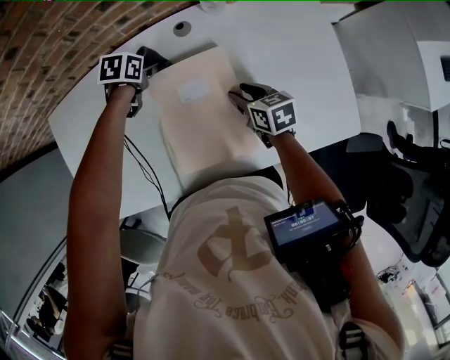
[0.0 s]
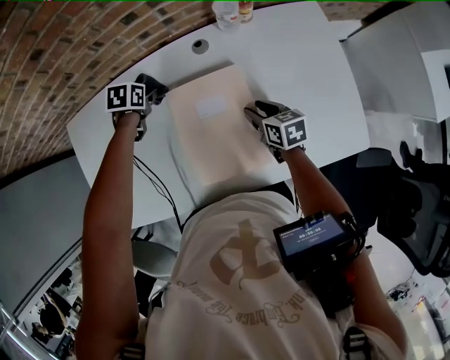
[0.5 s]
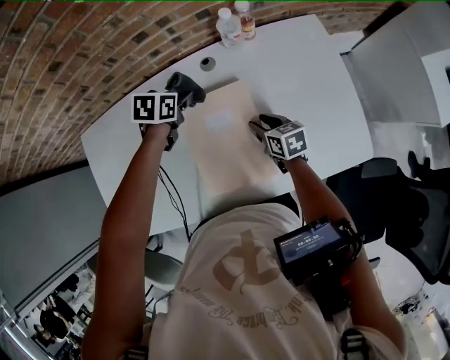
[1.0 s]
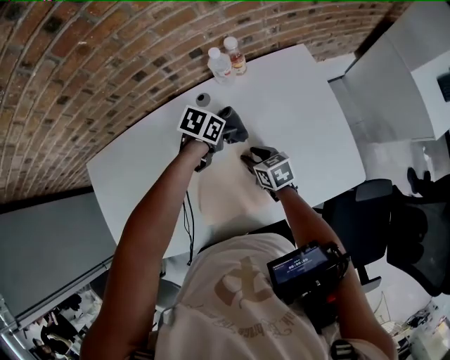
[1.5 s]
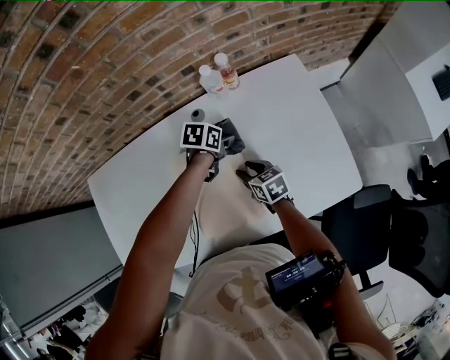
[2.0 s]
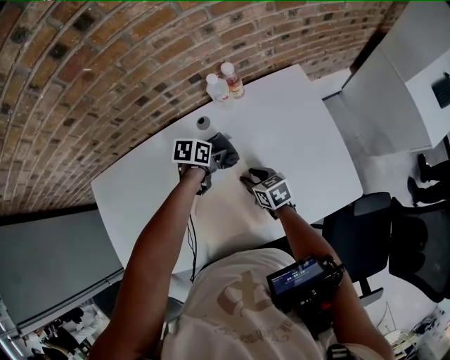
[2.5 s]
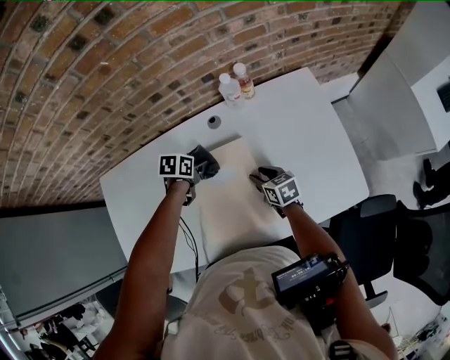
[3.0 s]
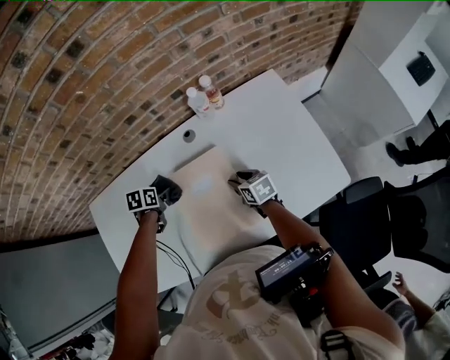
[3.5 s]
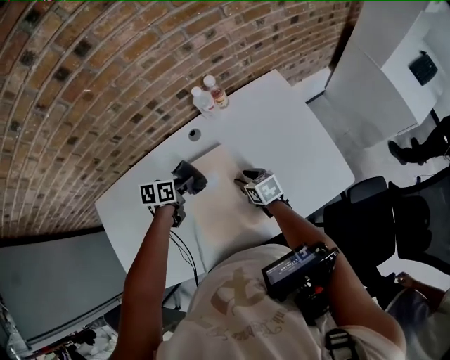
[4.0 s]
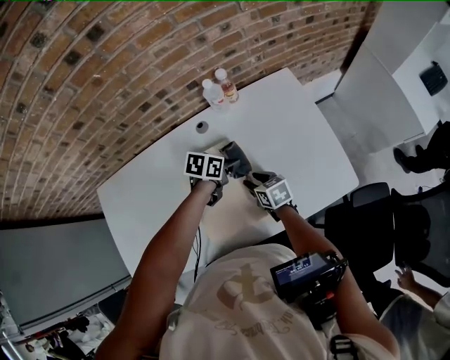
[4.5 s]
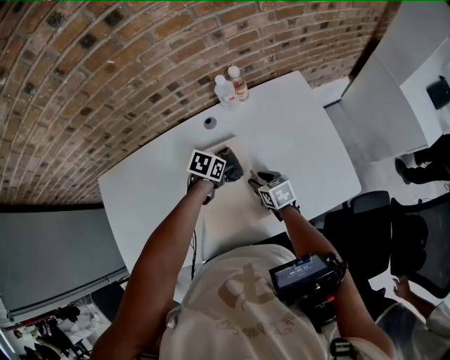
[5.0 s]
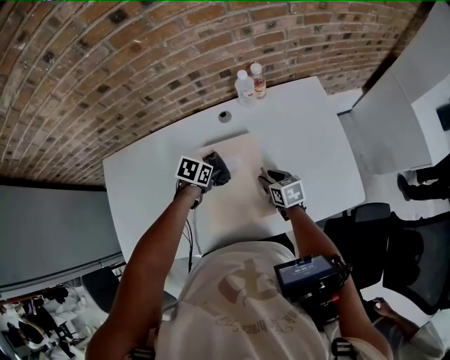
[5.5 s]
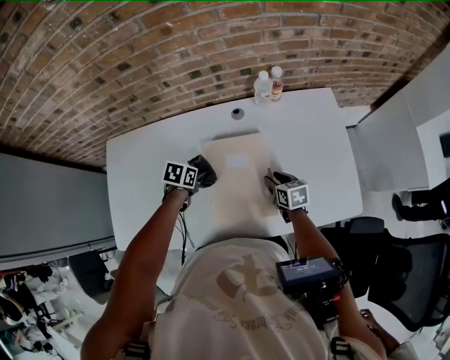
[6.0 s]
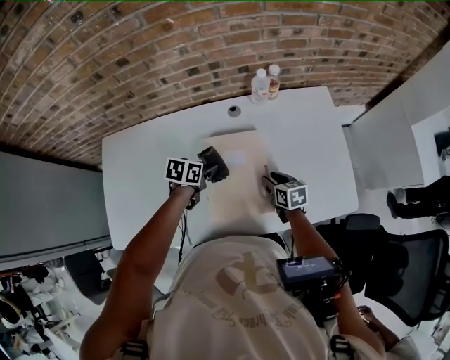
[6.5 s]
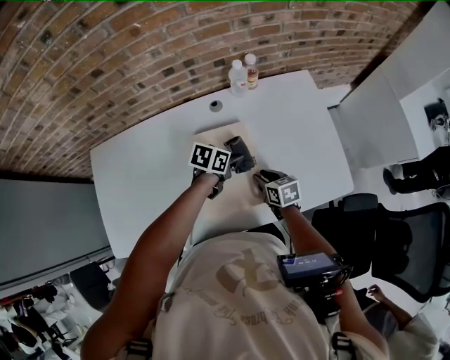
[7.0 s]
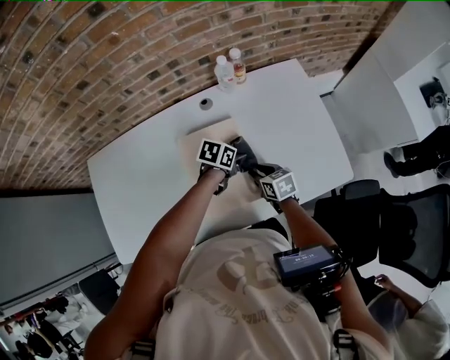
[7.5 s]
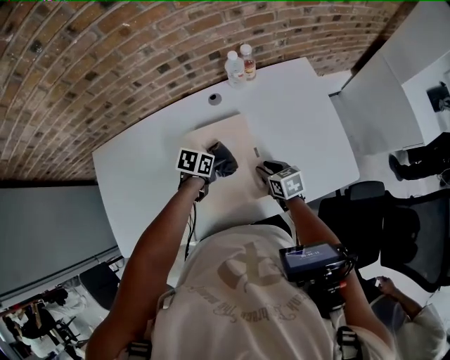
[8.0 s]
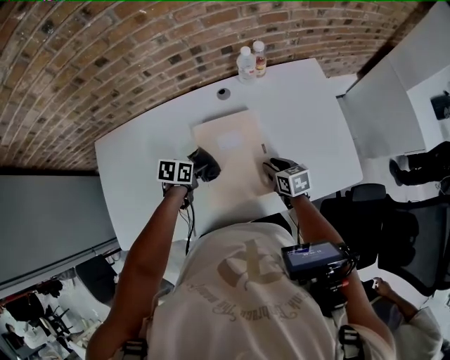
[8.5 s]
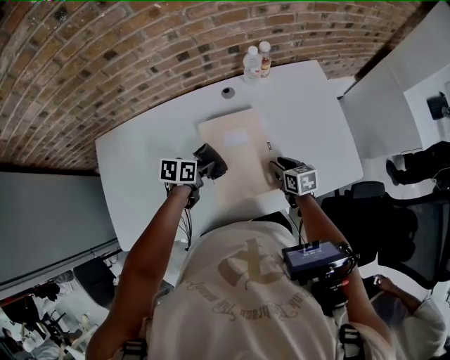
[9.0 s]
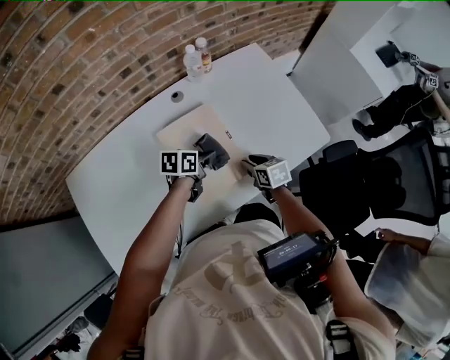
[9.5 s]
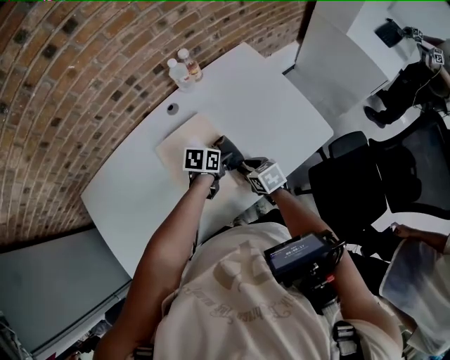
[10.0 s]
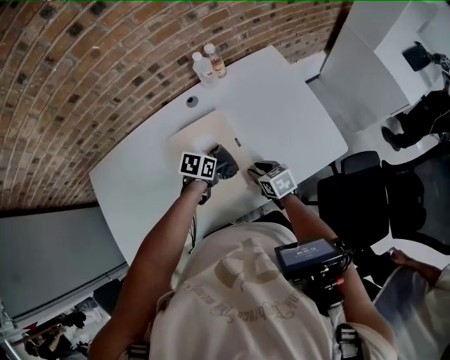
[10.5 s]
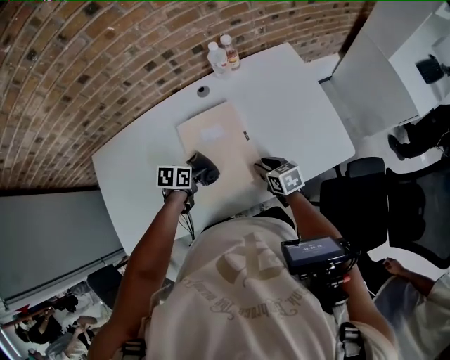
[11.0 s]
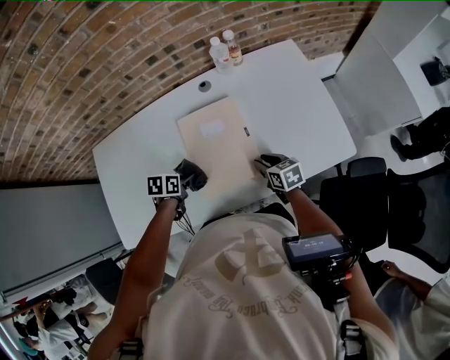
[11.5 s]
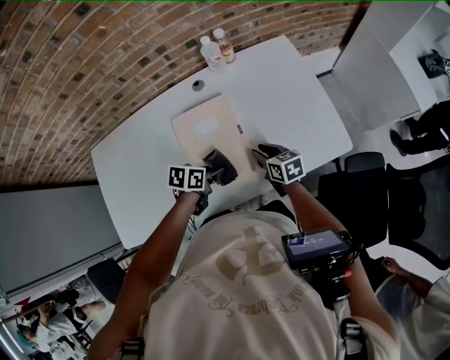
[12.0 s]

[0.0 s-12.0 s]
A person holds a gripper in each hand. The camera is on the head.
0.0 to 2.0 s: The left gripper travels upward and back again, approximately 10 cm each way.
2.0 to 4.0 s: The left gripper goes roughly 15 cm to the left, backward and upward.
4.0 to 6.0 s: The left gripper heads backward and to the left, covering some 10 cm.
6.0 to 8.0 s: The left gripper heads to the right, covering about 10 cm.
8.0 to 10.0 s: The right gripper is displaced backward by approximately 5 cm, while the left gripper heads to the right, covering approximately 15 cm.
10.0 to 12.0 s: The left gripper shifts approximately 10 cm backward, and goes to the left and returns, some 20 cm each way.

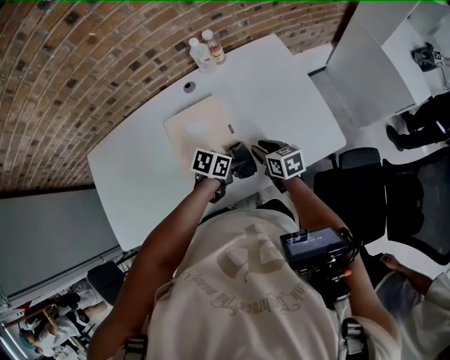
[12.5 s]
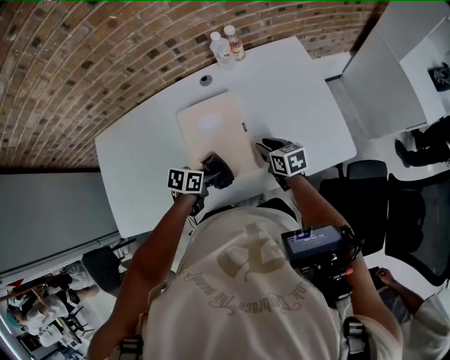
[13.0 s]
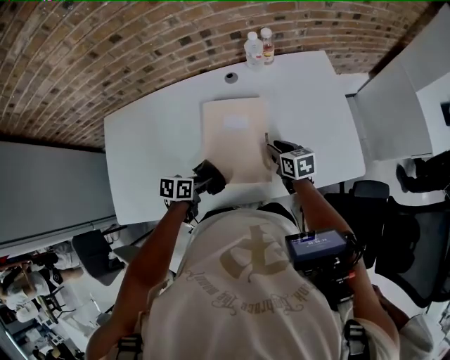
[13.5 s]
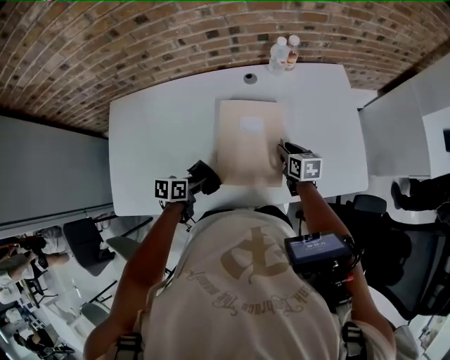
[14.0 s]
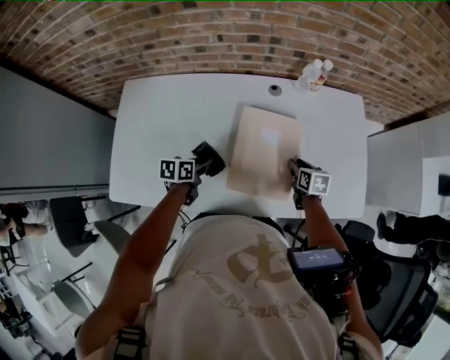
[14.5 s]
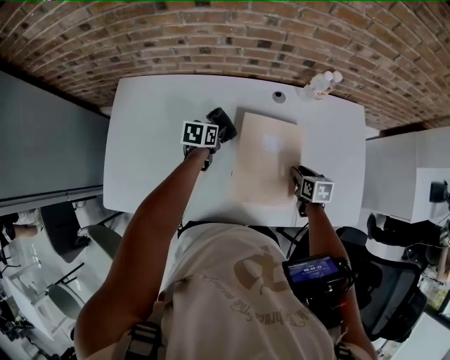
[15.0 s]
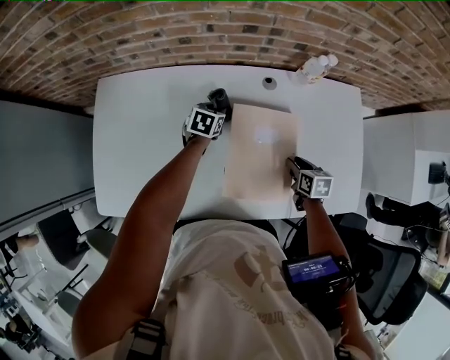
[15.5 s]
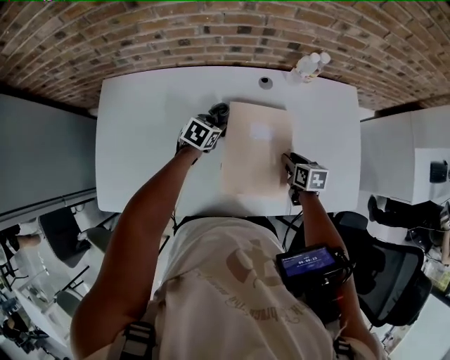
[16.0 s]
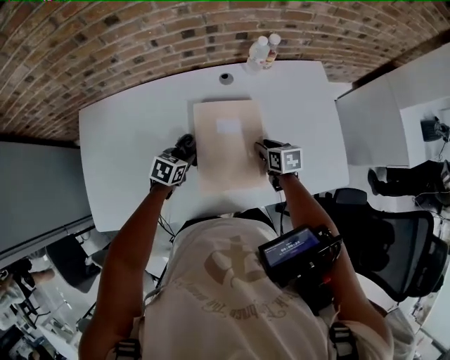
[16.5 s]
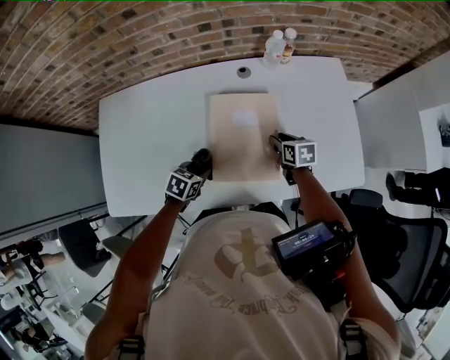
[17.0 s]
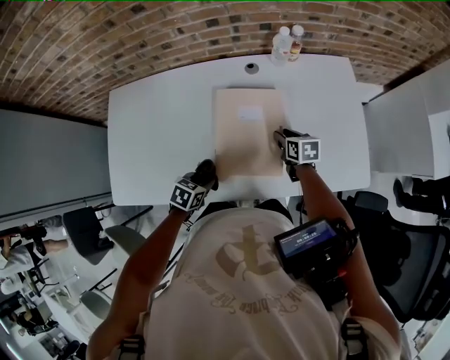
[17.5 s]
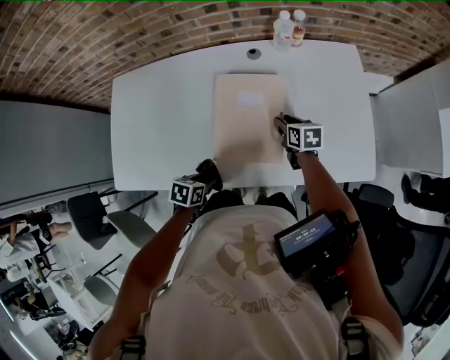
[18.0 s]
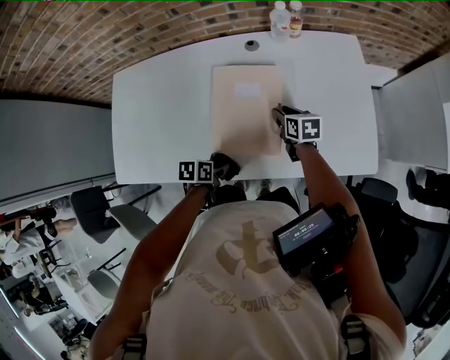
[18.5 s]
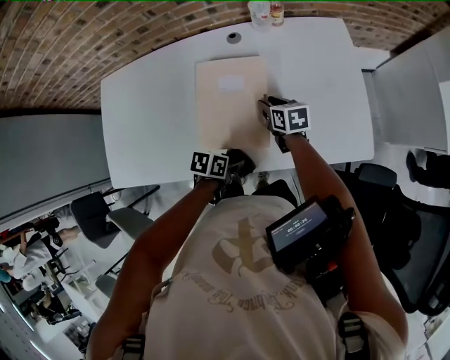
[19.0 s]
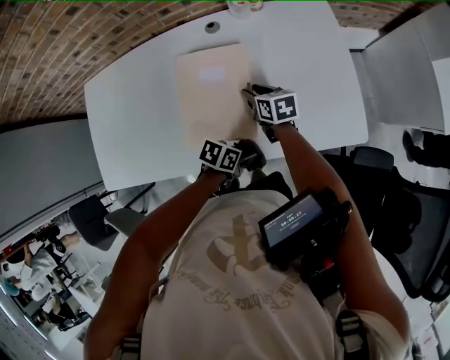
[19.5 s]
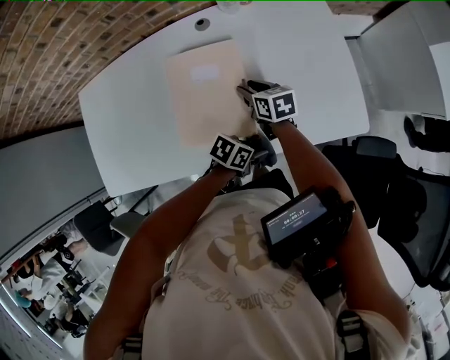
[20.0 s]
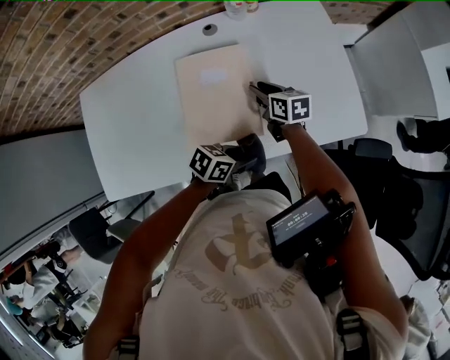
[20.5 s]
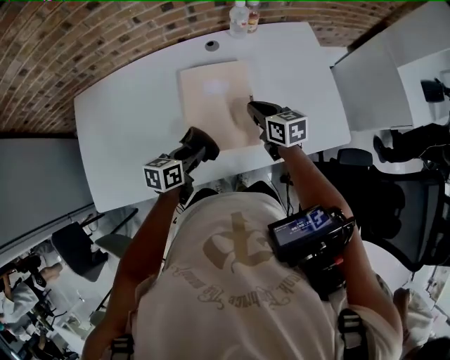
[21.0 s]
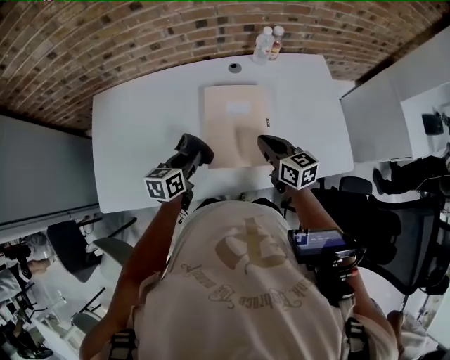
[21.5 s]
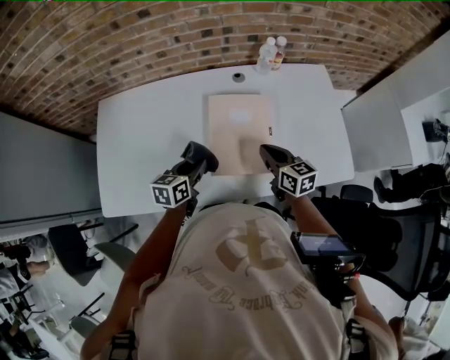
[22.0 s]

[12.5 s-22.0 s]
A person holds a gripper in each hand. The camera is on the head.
12.5 to 14.5 s: The right gripper is displaced to the left and forward by some 10 cm, while the left gripper heads to the left, covering approximately 30 cm, and changes its angle by roughly 40 degrees.
14.5 to 16.5 s: The left gripper heads to the right, covering approximately 5 cm, reaches roughly 20 cm forward, then returns, and changes its angle by some 40 degrees.
16.5 to 18.0 s: The left gripper heads backward, covering approximately 20 cm, and swivels approximately 20 degrees.
18.0 to 20.0 s: The left gripper moves some 25 cm, and changes its angle by some 30 degrees.
20.0 to 22.0 s: The left gripper ends up approximately 35 cm from where it was, and rotates roughly 50 degrees. Meanwhile the right gripper travels upward by some 15 cm, and closes its fingers.

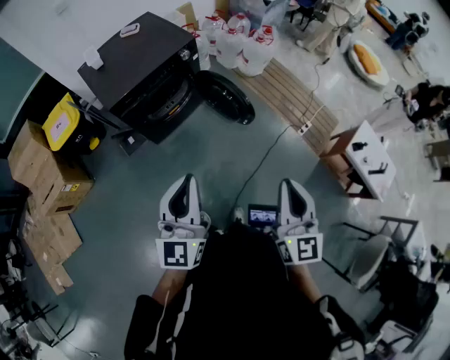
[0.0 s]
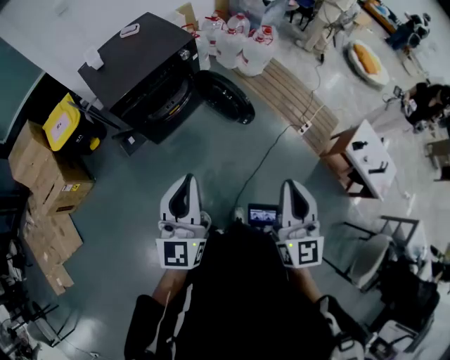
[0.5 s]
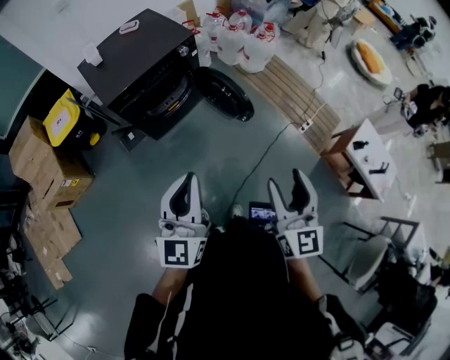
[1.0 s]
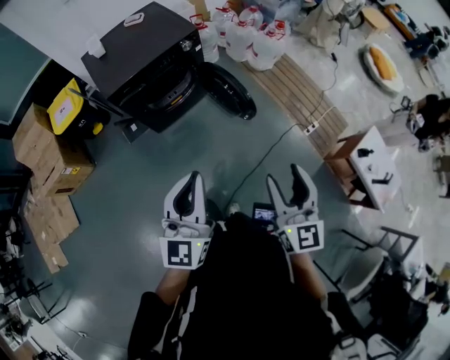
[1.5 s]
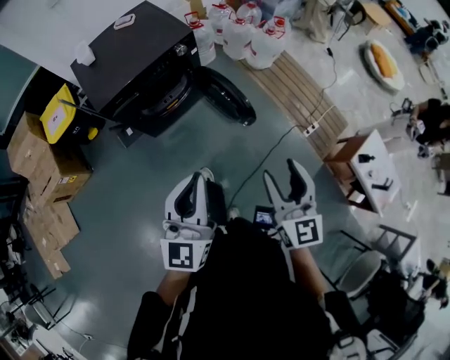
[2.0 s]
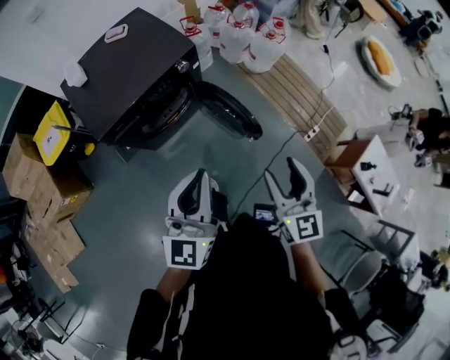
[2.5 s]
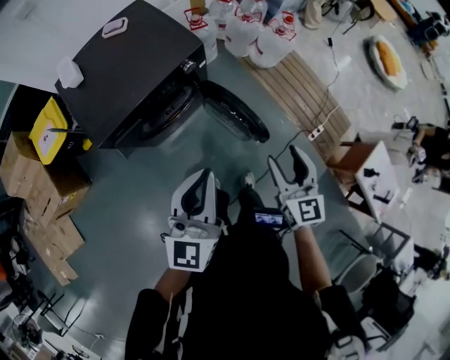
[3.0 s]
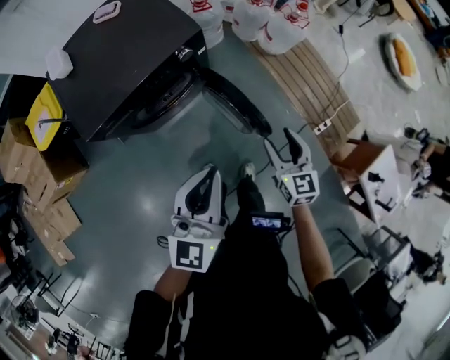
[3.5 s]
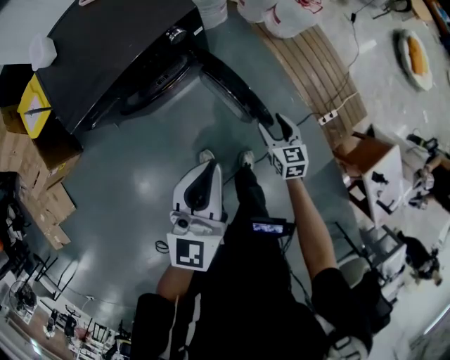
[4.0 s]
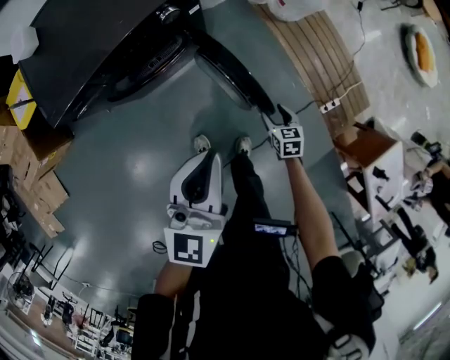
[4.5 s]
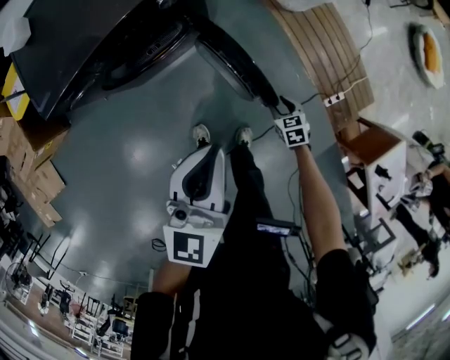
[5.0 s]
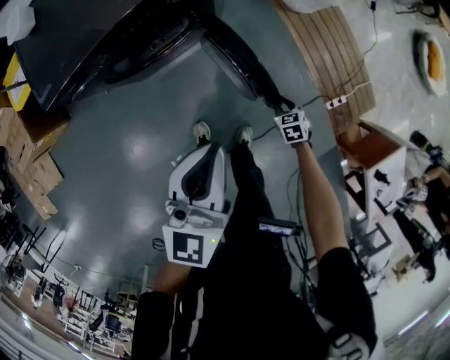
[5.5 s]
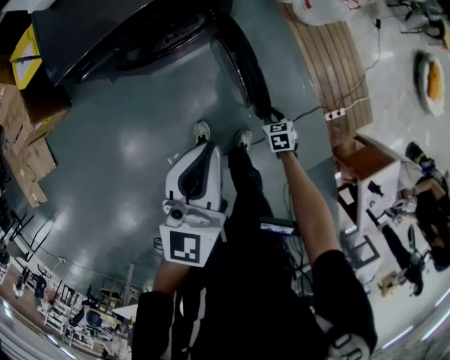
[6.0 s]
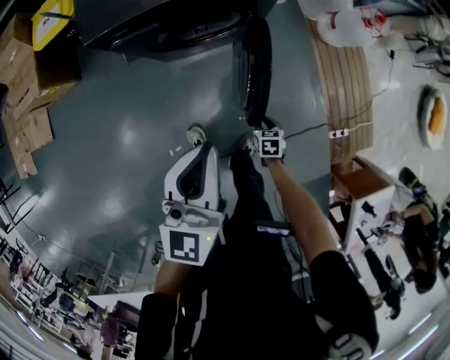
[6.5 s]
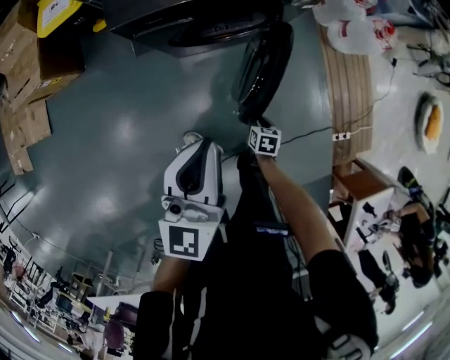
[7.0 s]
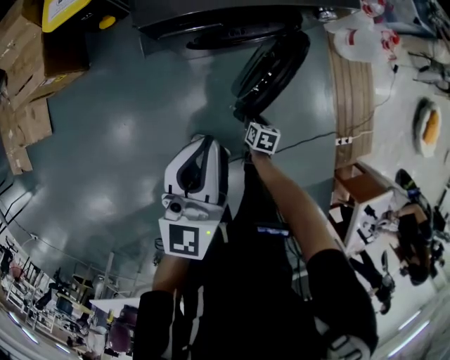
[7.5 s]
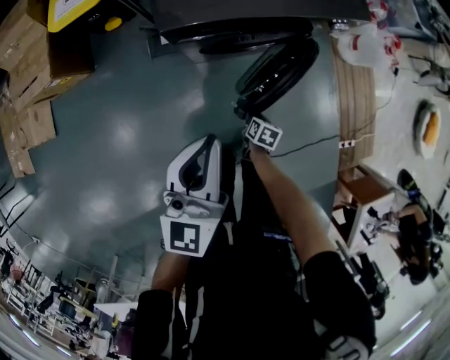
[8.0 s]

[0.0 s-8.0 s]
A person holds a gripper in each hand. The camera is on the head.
0.0 to 2.0 s: The right gripper shifts some 15 cm forward, and opens its fingers; the left gripper moves forward and to the right, some 10 cm.
2.0 to 4.0 s: The right gripper travels downward and forward by about 50 cm, and angles its fingers downward, by some 30 degrees. The left gripper shifts roughly 30 cm forward and downward.
4.0 to 6.0 s: The left gripper moves about 5 cm. Meanwhile the right gripper travels downward by some 20 cm, rotates roughly 30 degrees, and closes its fingers.
6.0 to 8.0 s: Both grippers travel together to the left, approximately 30 cm. The right gripper swivels about 30 degrees.
